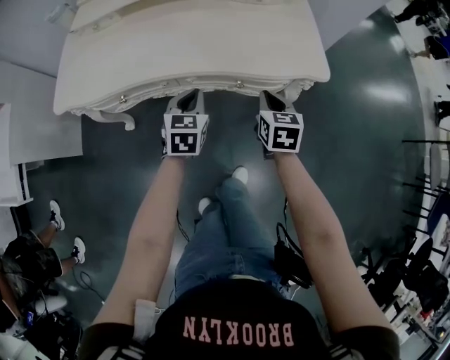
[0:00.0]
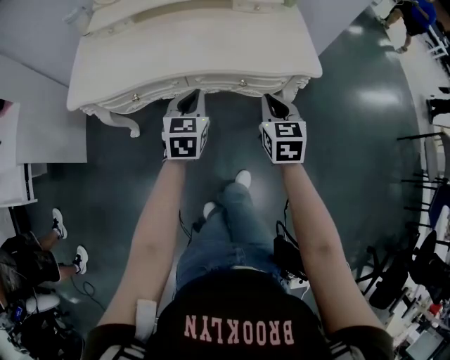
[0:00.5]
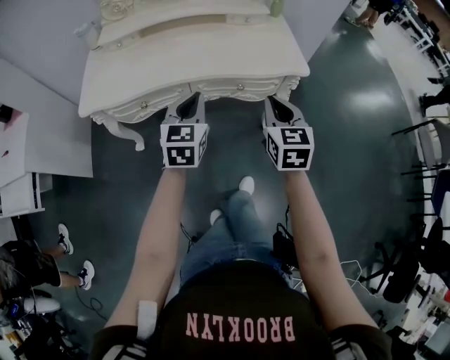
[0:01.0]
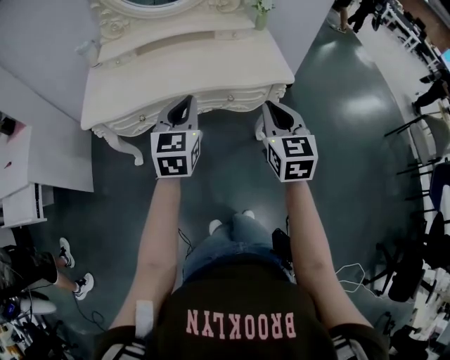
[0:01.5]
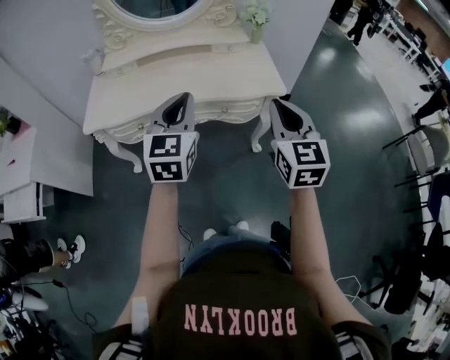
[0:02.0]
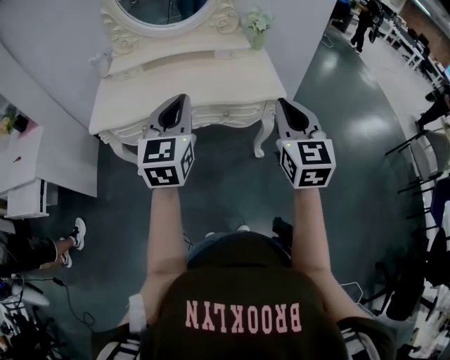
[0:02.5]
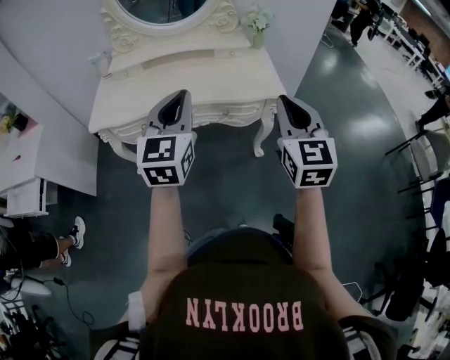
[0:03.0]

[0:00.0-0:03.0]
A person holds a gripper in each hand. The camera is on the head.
0:00.0 to 0:01.5: The grippers both shift upward and backward by about 30 cm. The right gripper rotates some 30 degrees. Meanwhile the left gripper rotates some 20 degrees.
0:01.5 to 0:03.0: The left gripper moves upward, approximately 10 cm, while the right gripper goes roughly 15 cm upward and to the right.

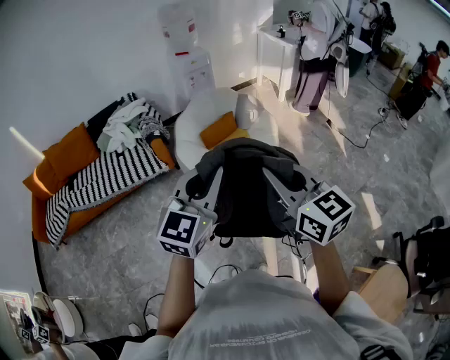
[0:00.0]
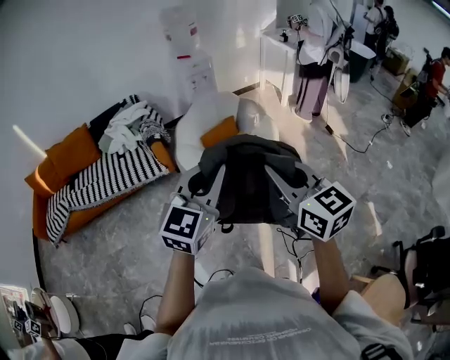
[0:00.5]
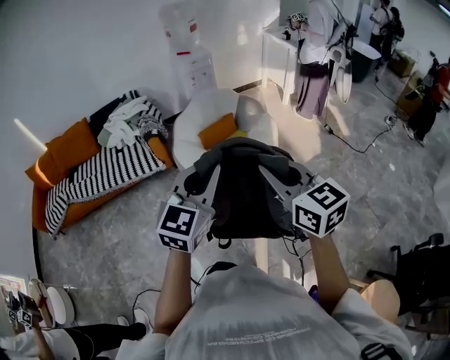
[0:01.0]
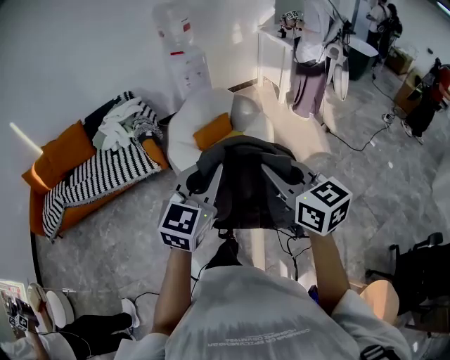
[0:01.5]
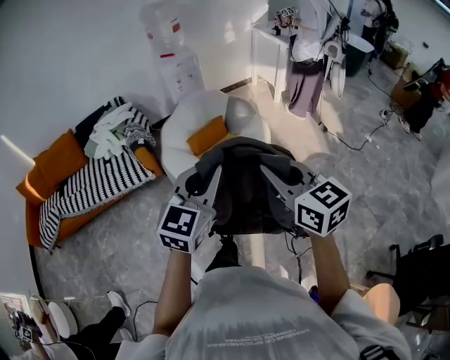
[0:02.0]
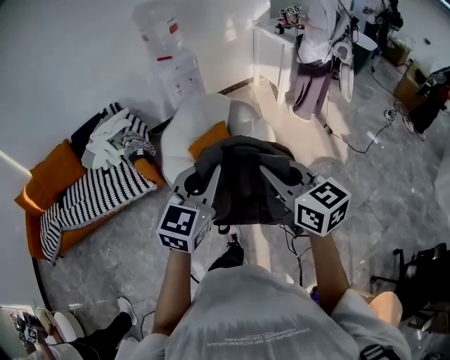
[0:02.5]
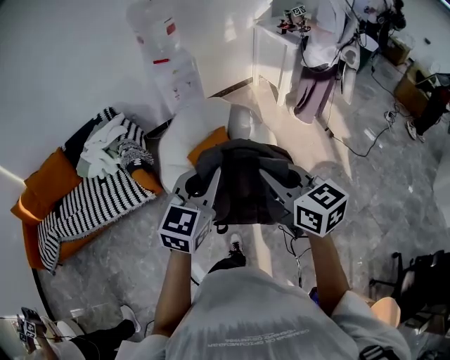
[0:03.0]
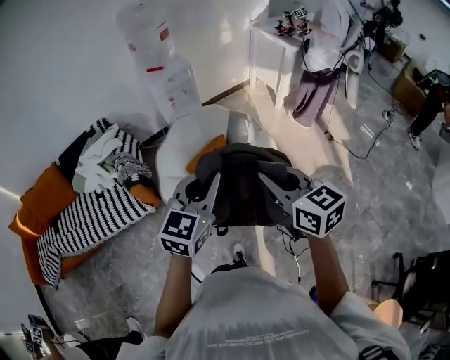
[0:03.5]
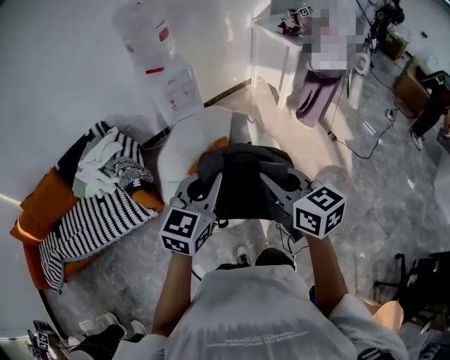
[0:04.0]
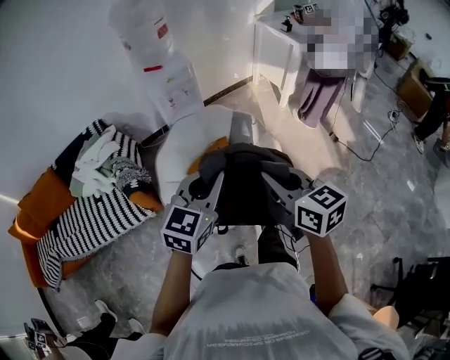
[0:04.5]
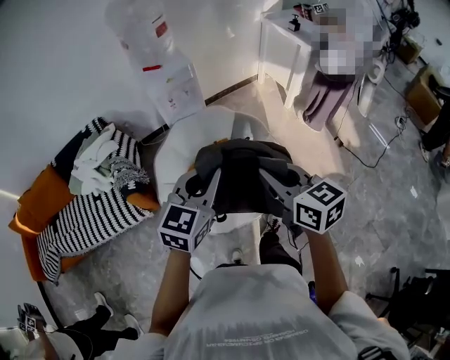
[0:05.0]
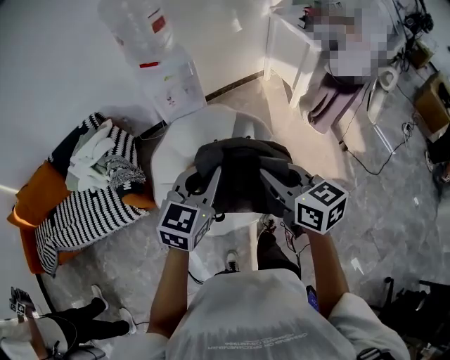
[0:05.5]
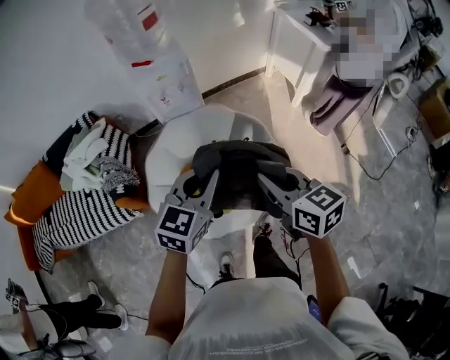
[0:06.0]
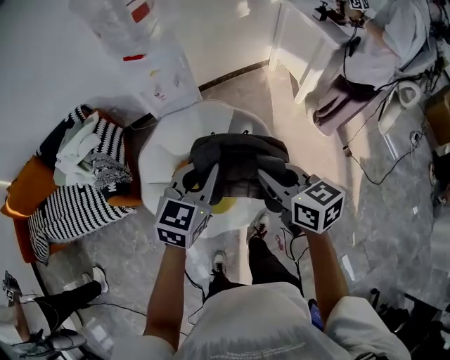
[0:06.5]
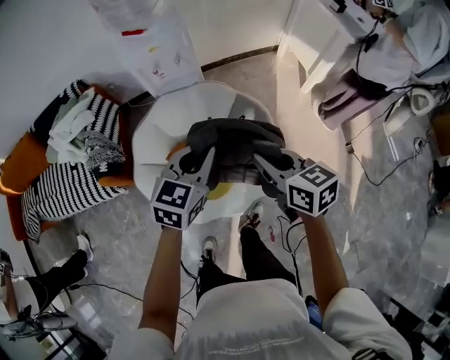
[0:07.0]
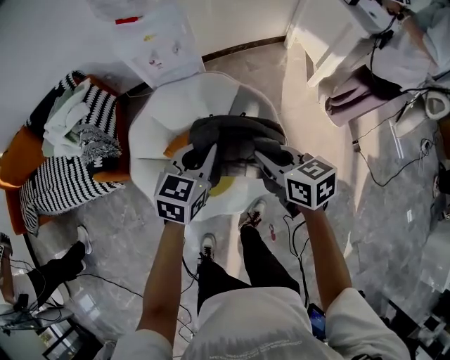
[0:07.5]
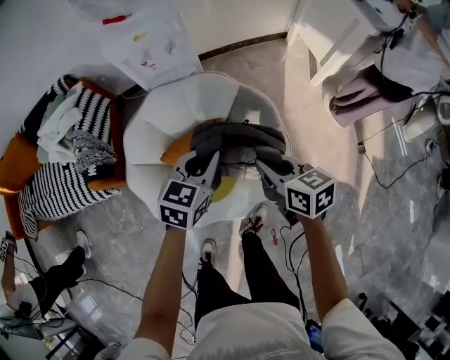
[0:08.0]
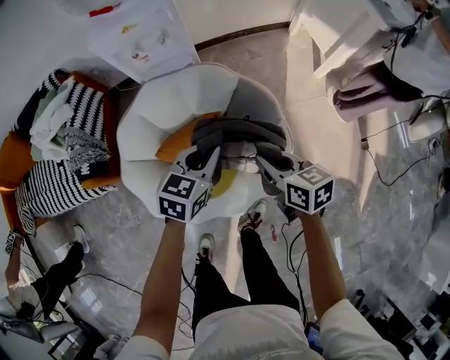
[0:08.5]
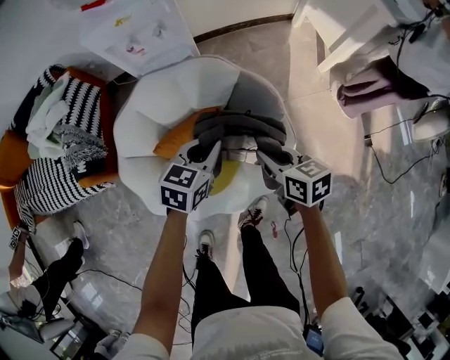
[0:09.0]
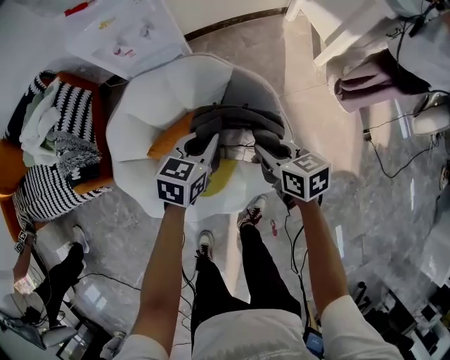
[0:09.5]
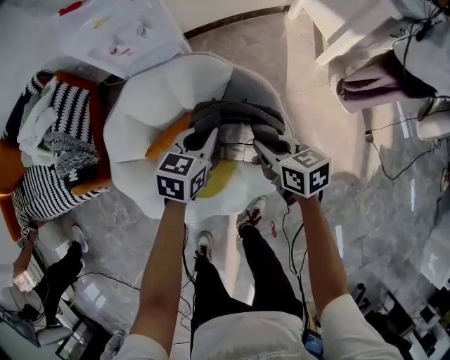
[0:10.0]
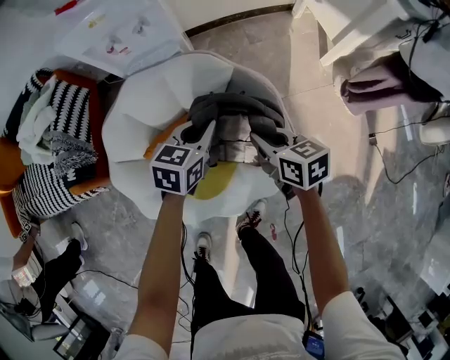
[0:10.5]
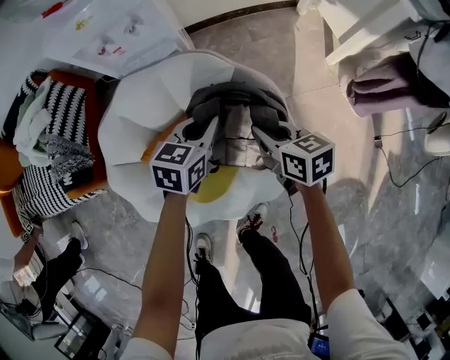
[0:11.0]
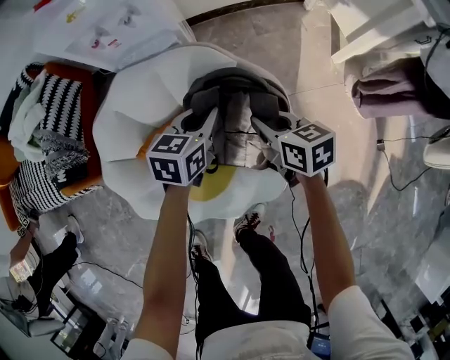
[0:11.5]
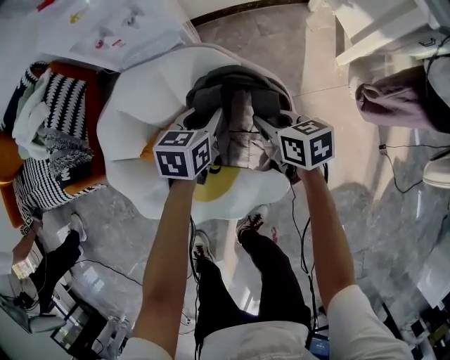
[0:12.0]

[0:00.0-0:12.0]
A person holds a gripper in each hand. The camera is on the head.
0:00.0 to 0:02.0: The right gripper goes about 15 cm to the right, forward and downward; the left gripper is displaced to the right and forward by about 15 cm.
0:02.0 to 0:04.0: The grippers both shift forward by roughly 35 cm.
0:04.0 to 0:06.0: The grippers both shift forward by some 20 cm.
0:06.0 to 0:08.0: Both grippers travel together downward and forward, approximately 25 cm.
0:08.0 to 0:10.0: Both grippers move downward and forward, roughly 15 cm.
0:10.0 to 0:12.0: The left gripper heads downward and forward, covering roughly 10 cm; the right gripper travels forward and downward by some 15 cm.

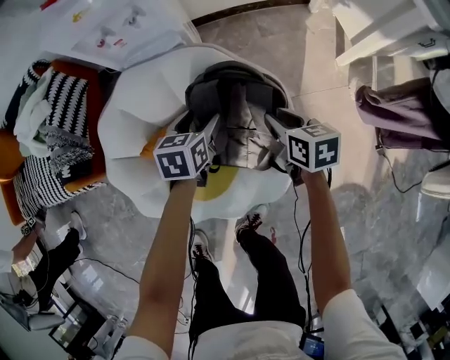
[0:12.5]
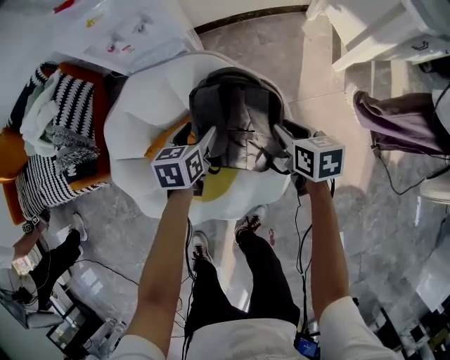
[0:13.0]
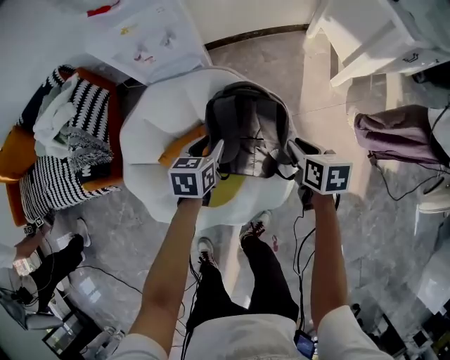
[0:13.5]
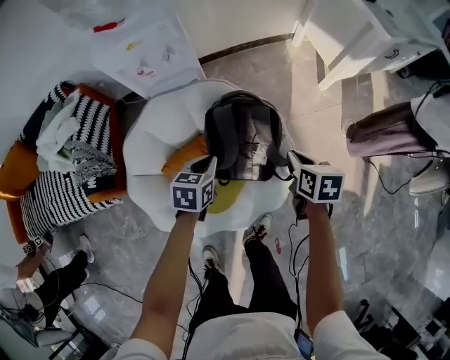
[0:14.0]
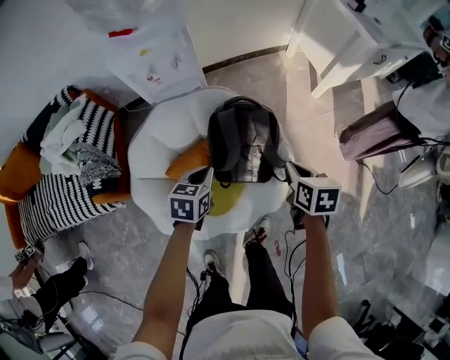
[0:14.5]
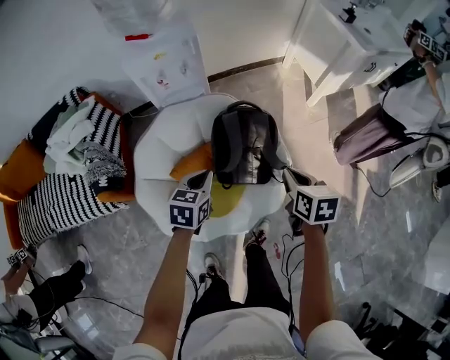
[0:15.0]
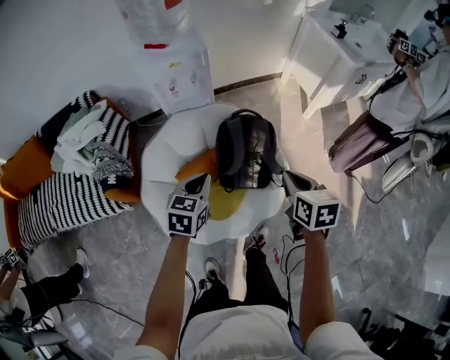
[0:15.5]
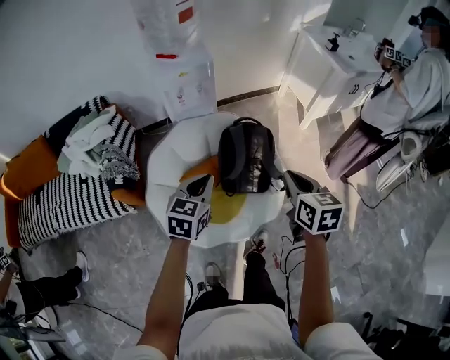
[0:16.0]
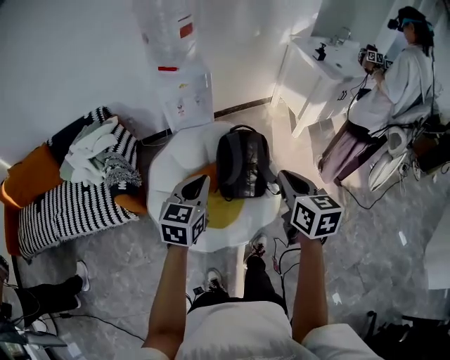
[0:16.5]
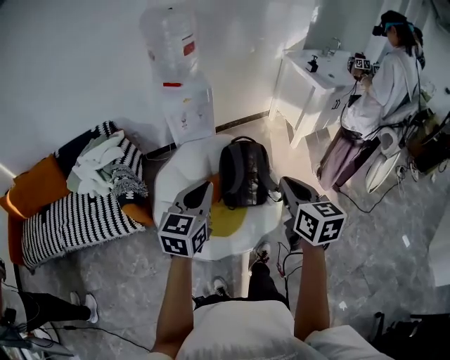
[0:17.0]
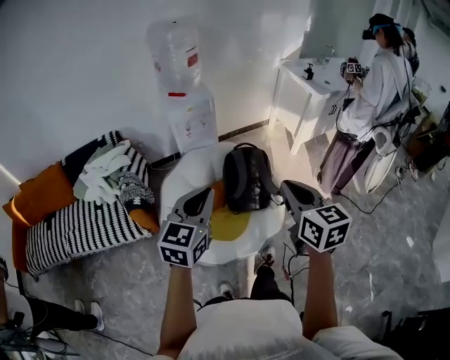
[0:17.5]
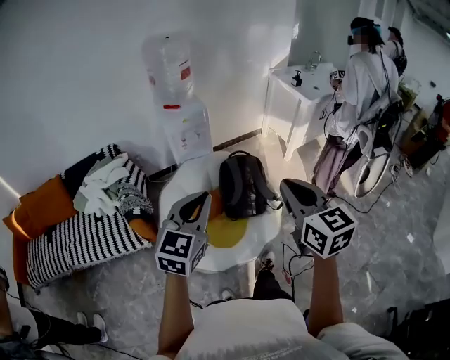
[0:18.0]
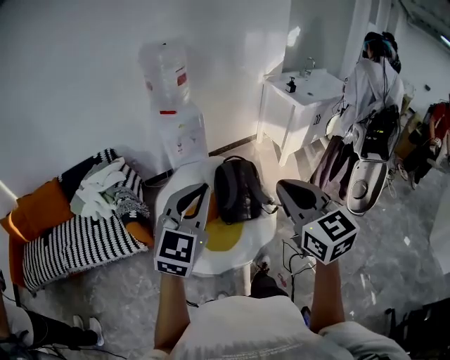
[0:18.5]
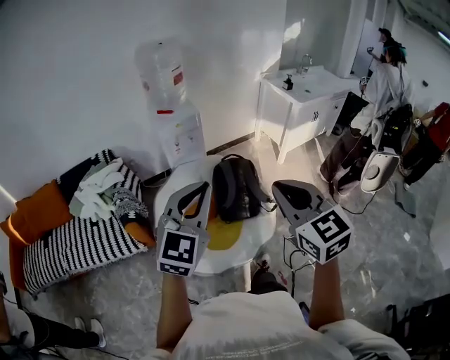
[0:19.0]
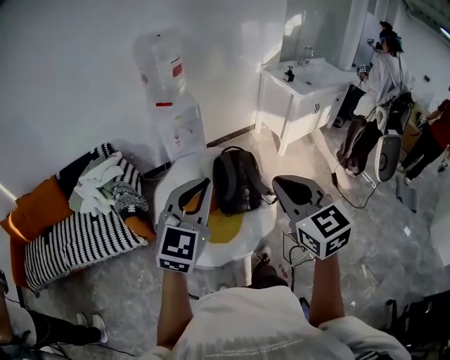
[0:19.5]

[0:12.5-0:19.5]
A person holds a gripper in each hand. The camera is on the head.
0:12.5 to 0:14.5: Both grippers move upward and backward, some 20 cm. The right gripper rotates roughly 20 degrees, and closes its fingers, while the left gripper closes its fingers.
0:14.5 to 0:16.0: The two grippers go roughly 25 cm upward and backward. The right gripper turns by approximately 20 degrees; the left gripper rotates roughly 20 degrees.
0:16.0 to 0:17.5: The grippers both shift upward and backward by about 25 cm.
0:17.5 to 0:19.5: The two grippers go about 10 cm upward and backward. The left gripper changes its angle by some 20 degrees; the right gripper turns by approximately 20 degrees.

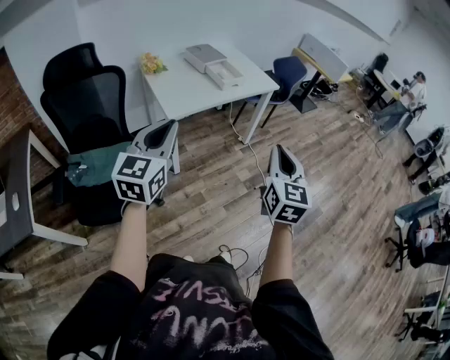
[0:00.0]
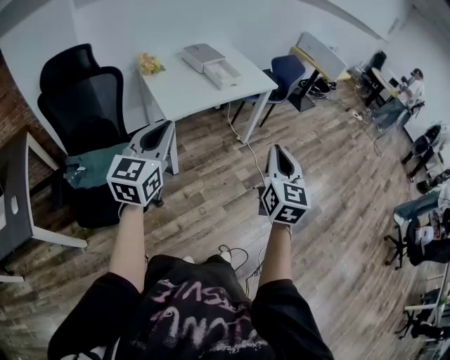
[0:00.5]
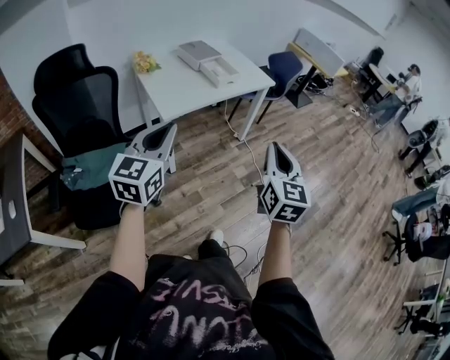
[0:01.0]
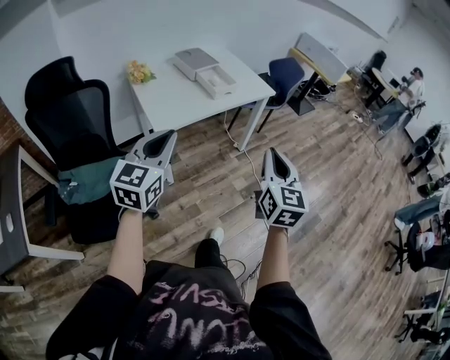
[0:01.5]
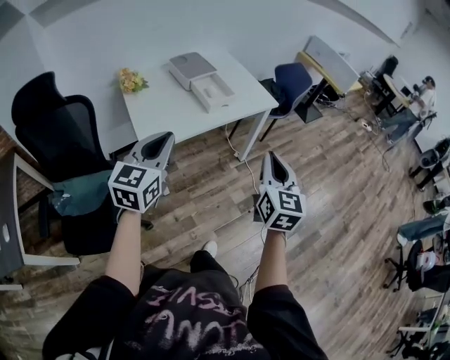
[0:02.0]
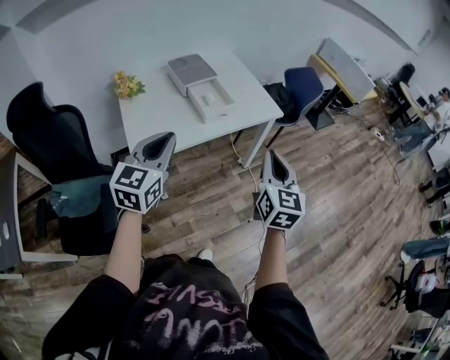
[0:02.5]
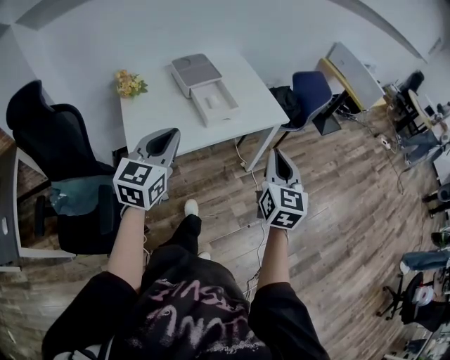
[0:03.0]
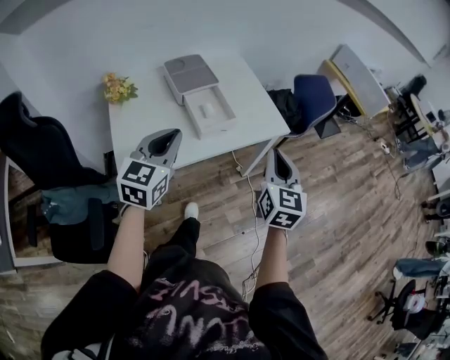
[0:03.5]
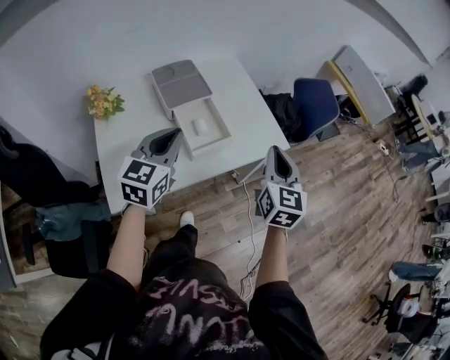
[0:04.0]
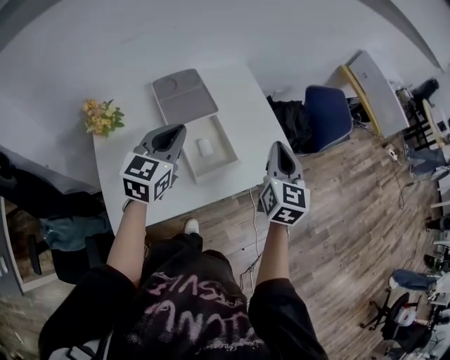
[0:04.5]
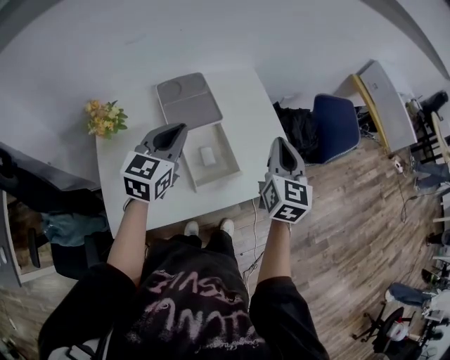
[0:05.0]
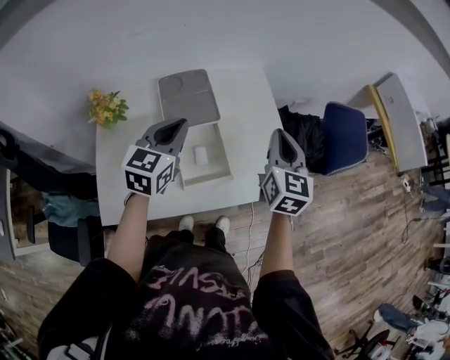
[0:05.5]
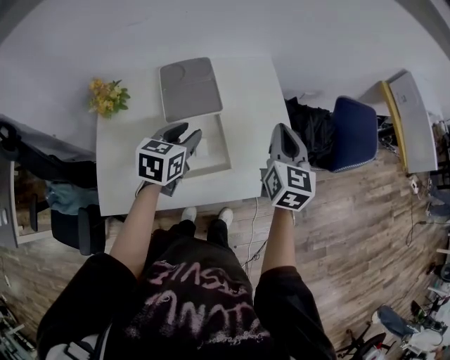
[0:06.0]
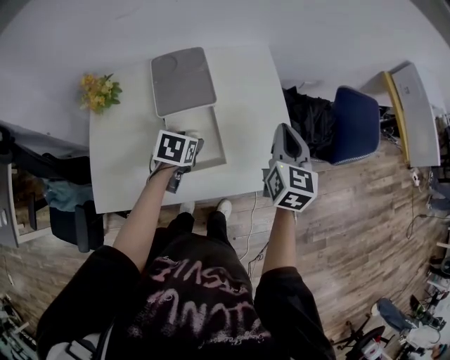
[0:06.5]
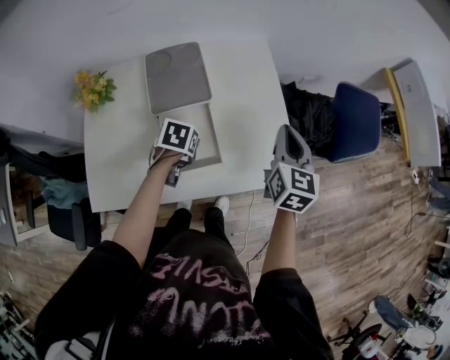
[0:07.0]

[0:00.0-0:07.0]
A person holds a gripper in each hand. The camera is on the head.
0:00.0 to 0:02.0: Both grippers travel together forward, about 25 cm.
0:02.0 to 0:03.5: Both grippers travel together forward, roughly 25 cm.
0:03.5 to 0:05.0: Both grippers travel together forward, some 25 cm.
0:05.0 to 0:07.0: The left gripper travels downward by some 25 cm, tips its fingers downward by some 50 degrees, and opens. The right gripper travels downward, forward and to the right by approximately 15 cm.
